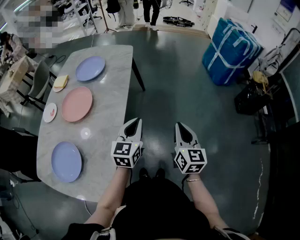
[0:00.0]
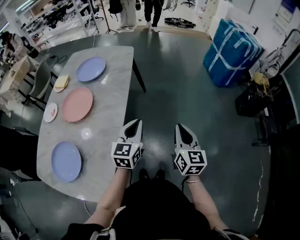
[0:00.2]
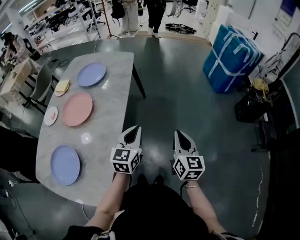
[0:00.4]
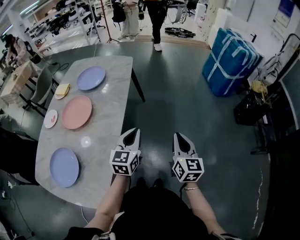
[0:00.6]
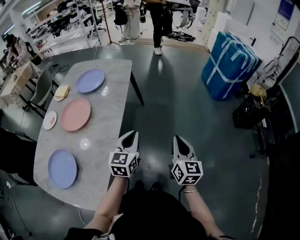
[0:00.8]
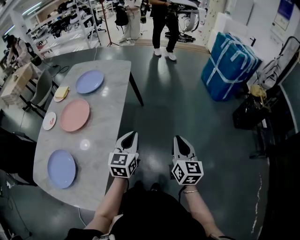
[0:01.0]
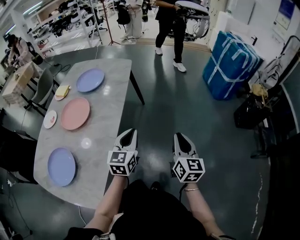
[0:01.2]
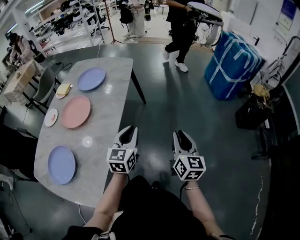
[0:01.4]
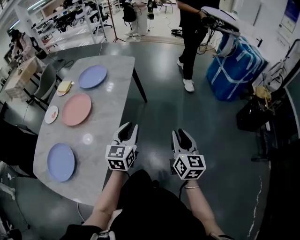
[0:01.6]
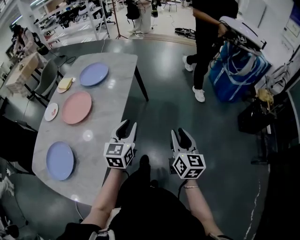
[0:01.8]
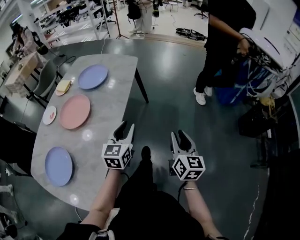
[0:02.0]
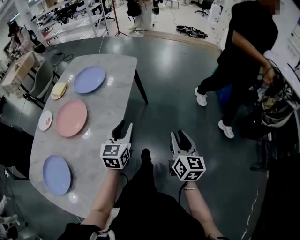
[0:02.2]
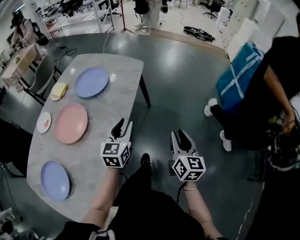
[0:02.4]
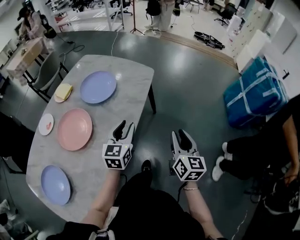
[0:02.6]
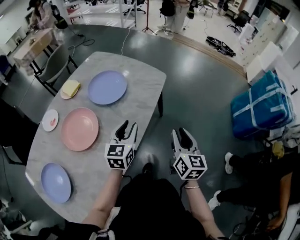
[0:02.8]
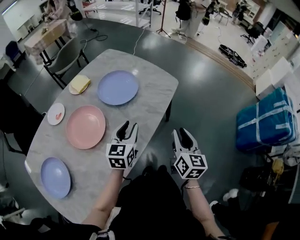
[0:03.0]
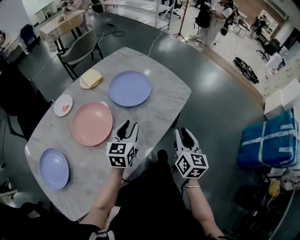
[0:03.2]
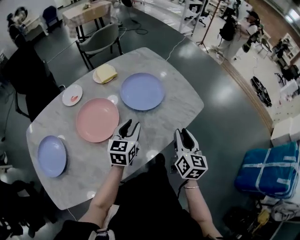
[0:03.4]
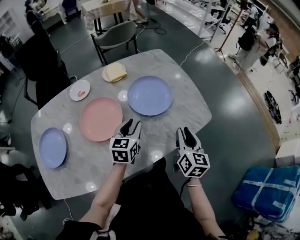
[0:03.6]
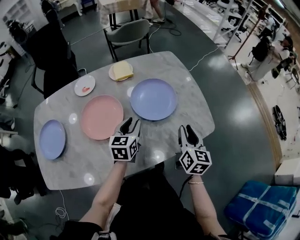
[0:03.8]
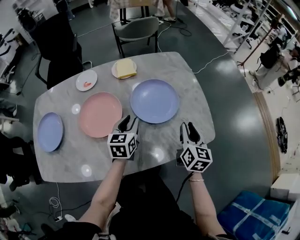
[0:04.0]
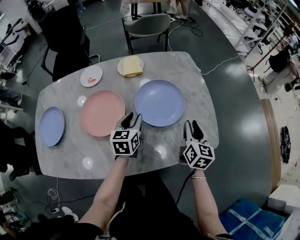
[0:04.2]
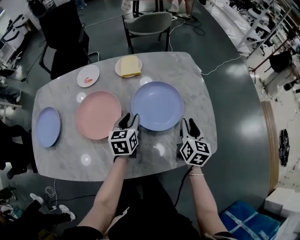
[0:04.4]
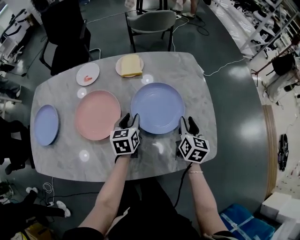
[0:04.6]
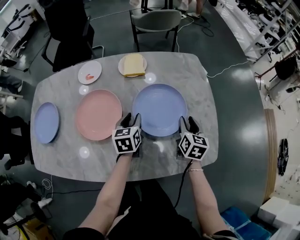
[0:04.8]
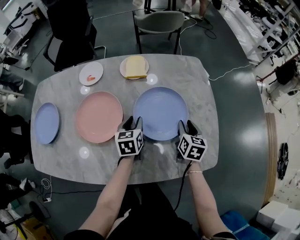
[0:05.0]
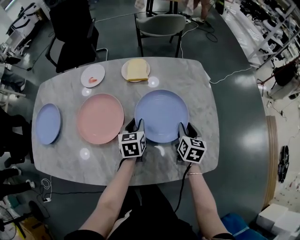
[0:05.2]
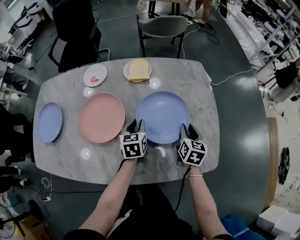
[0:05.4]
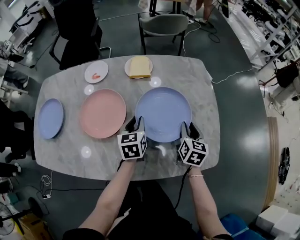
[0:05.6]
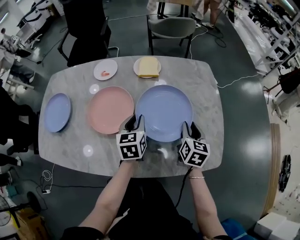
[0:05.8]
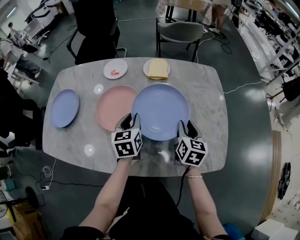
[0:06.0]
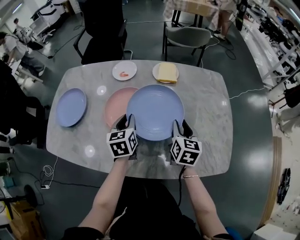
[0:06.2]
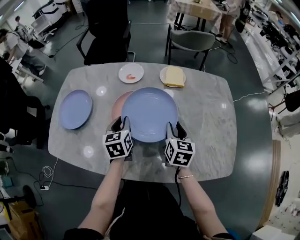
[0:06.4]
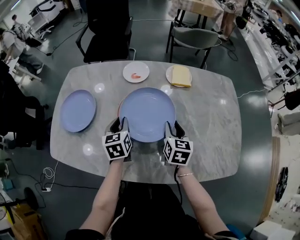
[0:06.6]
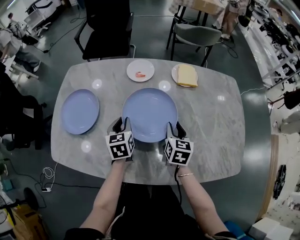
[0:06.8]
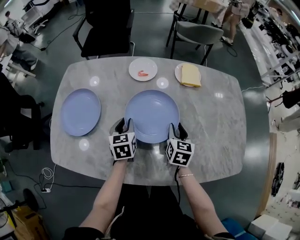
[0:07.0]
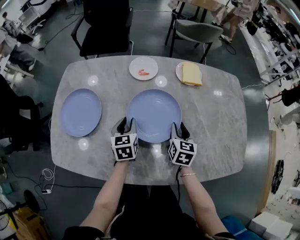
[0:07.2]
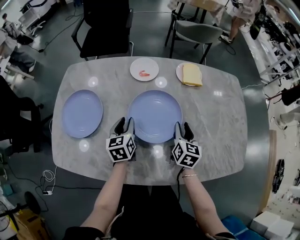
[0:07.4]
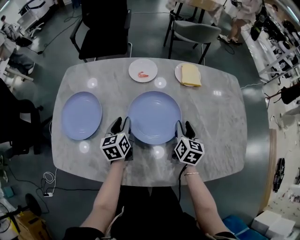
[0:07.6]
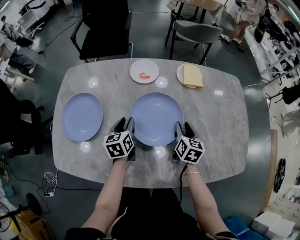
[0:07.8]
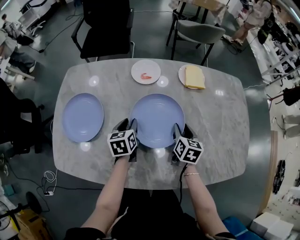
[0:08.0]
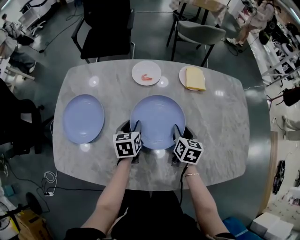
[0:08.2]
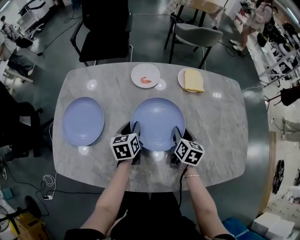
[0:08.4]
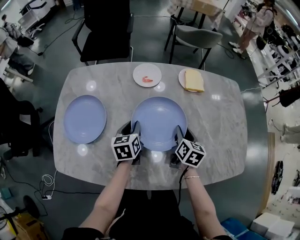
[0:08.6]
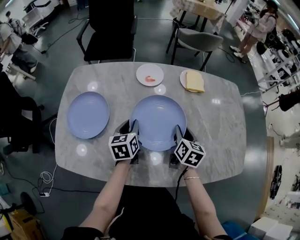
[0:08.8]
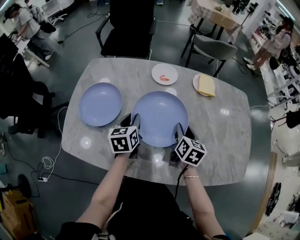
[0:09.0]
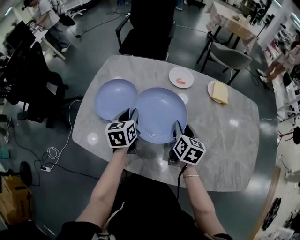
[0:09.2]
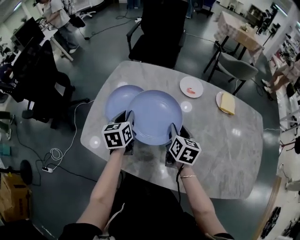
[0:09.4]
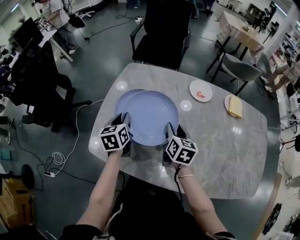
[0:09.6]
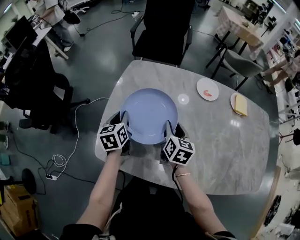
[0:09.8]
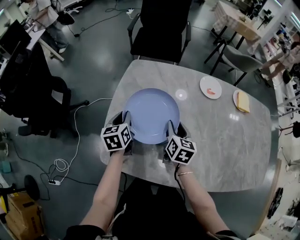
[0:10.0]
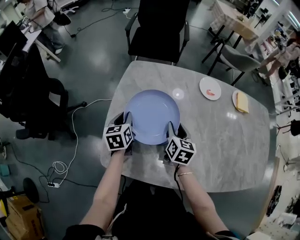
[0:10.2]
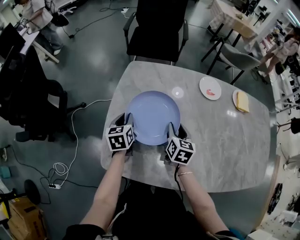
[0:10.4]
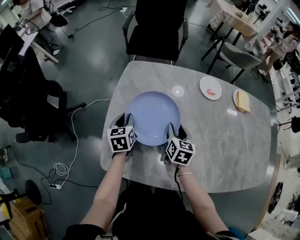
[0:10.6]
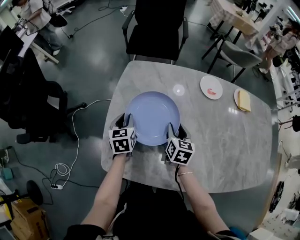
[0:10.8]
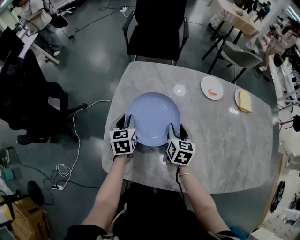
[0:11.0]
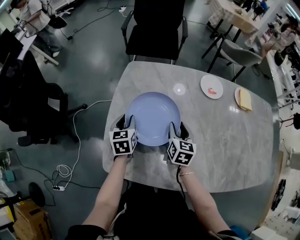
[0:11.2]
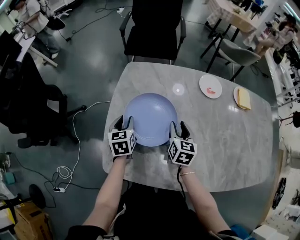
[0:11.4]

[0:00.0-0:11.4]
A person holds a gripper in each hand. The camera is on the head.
0:00.0 to 0:01.4: The right gripper shifts by about 5 cm.
0:01.4 to 0:02.8: The right gripper goes some 35 cm forward. Meanwhile the left gripper goes some 30 cm forward and to the left.
0:02.8 to 0:04.2: The right gripper moves some 40 cm, and changes its angle by about 50 degrees. Meanwhile the left gripper changes place by roughly 25 cm, and turns by roughly 60 degrees.
0:04.2 to 0:05.6: The right gripper moves forward and downward, some 10 cm.
0:05.6 to 0:07.2: The two grippers go approximately 30 cm to the left.
0:07.2 to 0:08.6: The grippers move only a little.
0:08.6 to 0:10.0: The two grippers go approximately 35 cm to the left.
0:10.0 to 0:11.4: The grippers make only small movements.

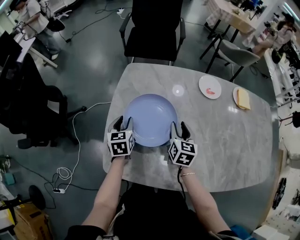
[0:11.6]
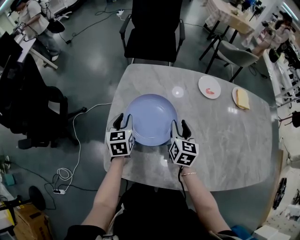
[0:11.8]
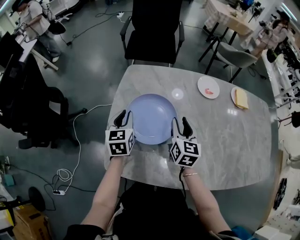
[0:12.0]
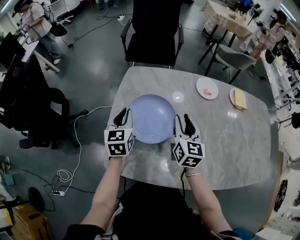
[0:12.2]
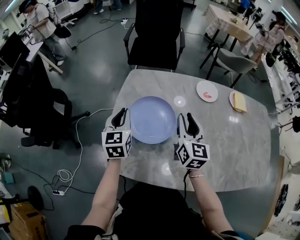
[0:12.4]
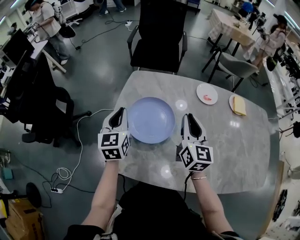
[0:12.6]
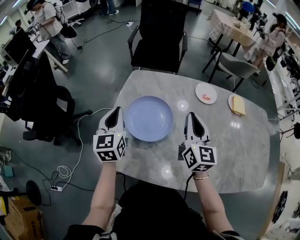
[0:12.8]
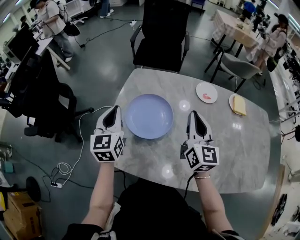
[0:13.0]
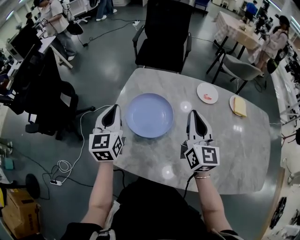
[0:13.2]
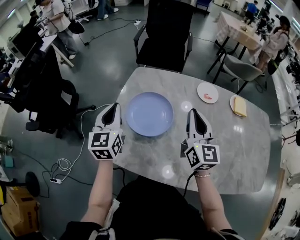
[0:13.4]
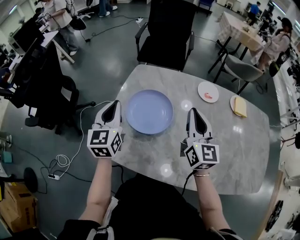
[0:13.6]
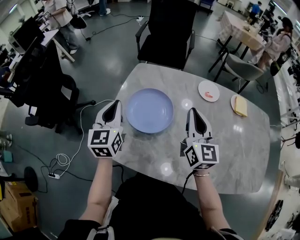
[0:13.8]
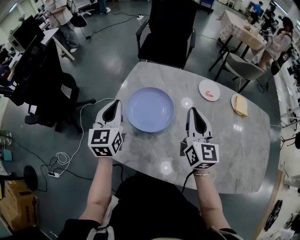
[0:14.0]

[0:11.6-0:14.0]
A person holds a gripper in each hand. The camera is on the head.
0:11.6 to 0:12.8: Both grippers move upward, about 20 cm. The right gripper rotates roughly 30 degrees, and closes up. The left gripper changes its angle by some 20 degrees, and closes.
0:12.8 to 0:14.0: The grippers move only a little.

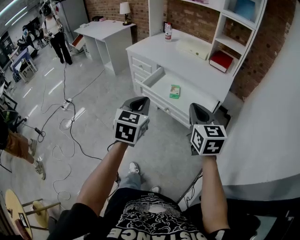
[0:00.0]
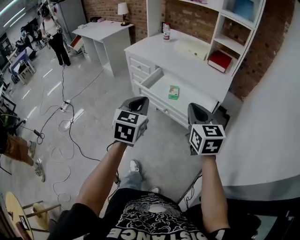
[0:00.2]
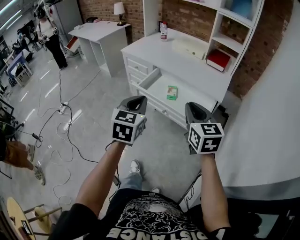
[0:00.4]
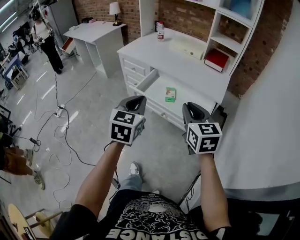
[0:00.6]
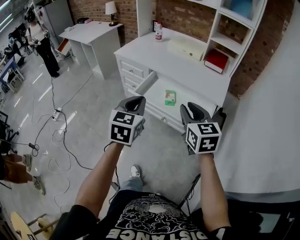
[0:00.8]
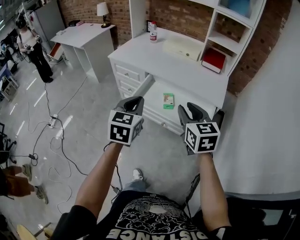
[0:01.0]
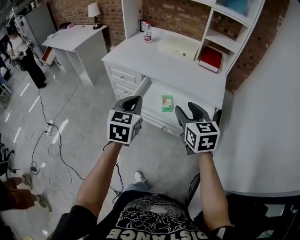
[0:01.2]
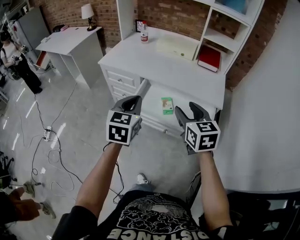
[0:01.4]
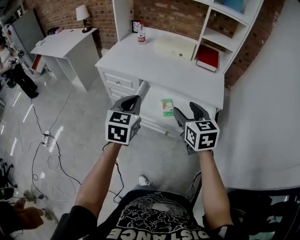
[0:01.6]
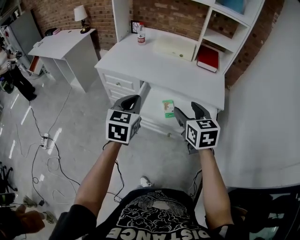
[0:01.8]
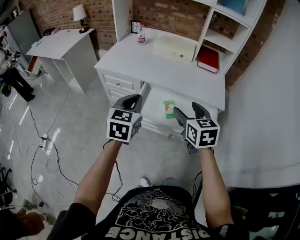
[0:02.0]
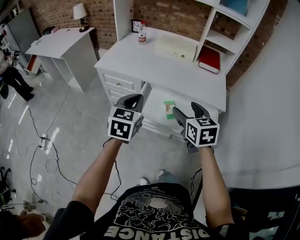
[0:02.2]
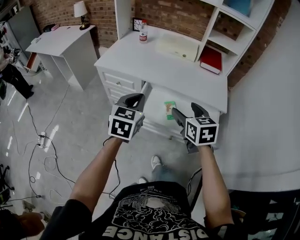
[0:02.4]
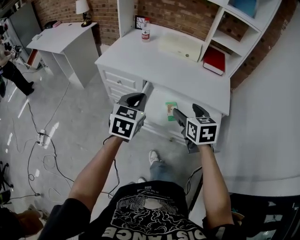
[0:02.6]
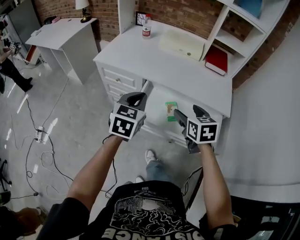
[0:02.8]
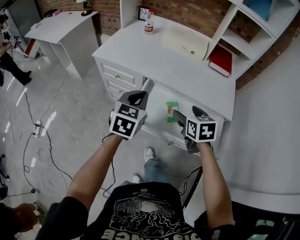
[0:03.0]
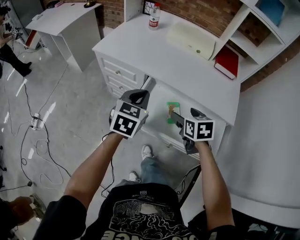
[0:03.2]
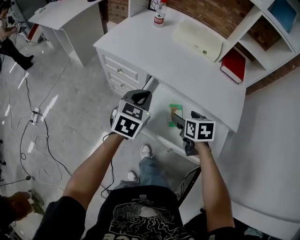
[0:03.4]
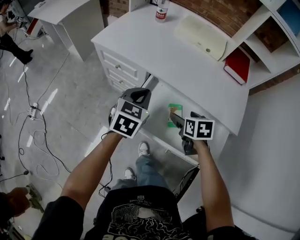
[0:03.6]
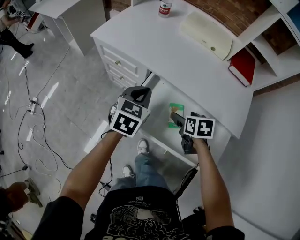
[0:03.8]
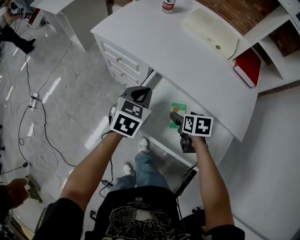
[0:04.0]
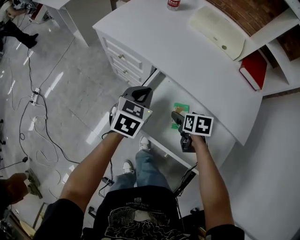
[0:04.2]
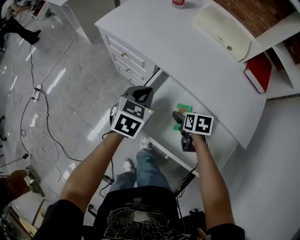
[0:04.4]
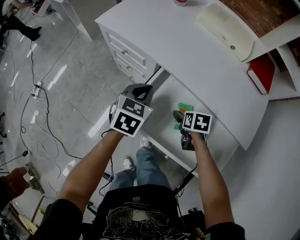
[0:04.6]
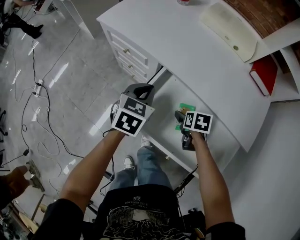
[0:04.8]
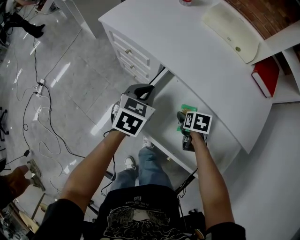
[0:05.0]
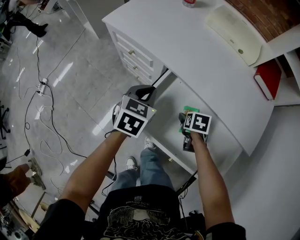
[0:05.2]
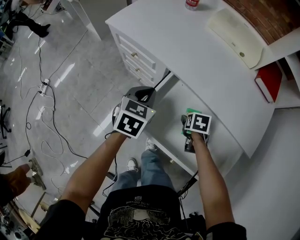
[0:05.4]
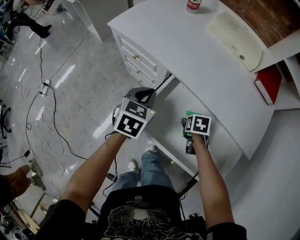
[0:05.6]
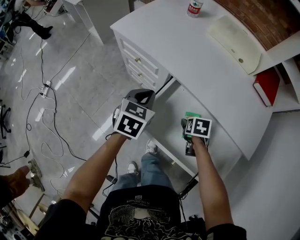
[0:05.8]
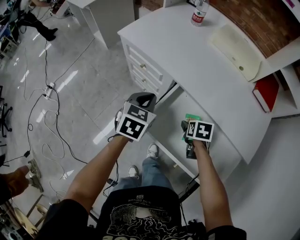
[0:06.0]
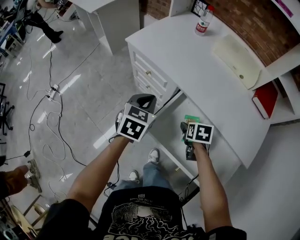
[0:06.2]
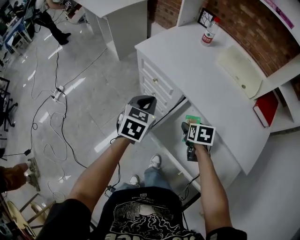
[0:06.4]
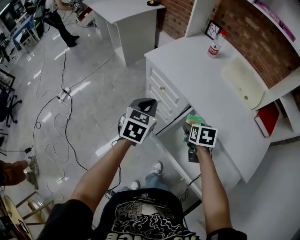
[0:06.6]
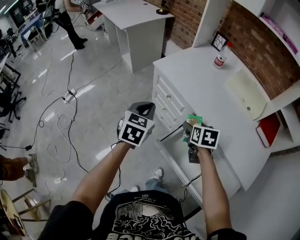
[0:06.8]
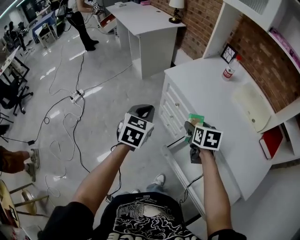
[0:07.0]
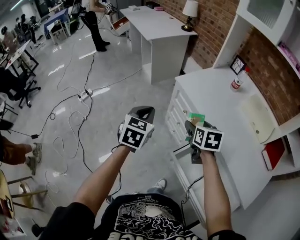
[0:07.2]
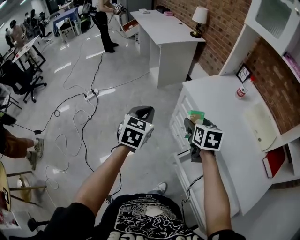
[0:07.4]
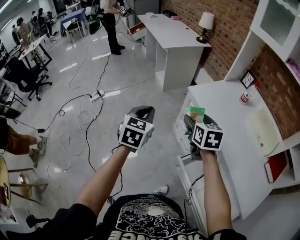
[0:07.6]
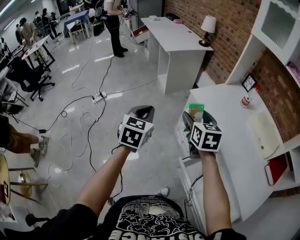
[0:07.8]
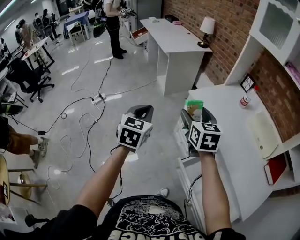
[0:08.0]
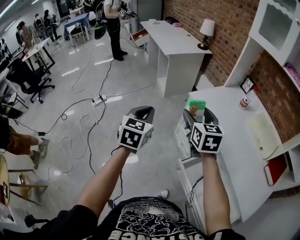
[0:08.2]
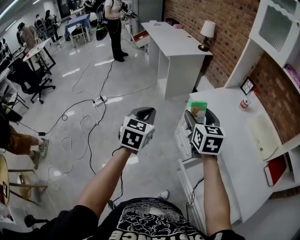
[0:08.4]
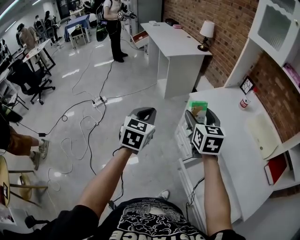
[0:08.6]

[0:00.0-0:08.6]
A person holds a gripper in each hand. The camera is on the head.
0:00.0 to 0:01.4: The left gripper shifts approximately 25 cm forward, while the right gripper travels forward and to the left by approximately 20 cm, and opens.
0:01.4 to 0:02.8: Both grippers travel together forward and downward, some 15 cm.
0:02.8 to 0:04.4: The two grippers go some 25 cm downward and forward. The right gripper rotates some 30 degrees.
0:04.4 to 0:05.8: The grippers make only small movements.
0:05.8 to 0:07.2: The right gripper shifts by roughly 35 cm, and tilts its fingers roughly 30 degrees upward. The left gripper moves about 30 cm, and rotates roughly 30 degrees.
0:07.2 to 0:08.6: The right gripper moves upward and to the left, some 20 cm, and rotates roughly 30 degrees. Meanwhile the left gripper shifts approximately 10 cm to the left and upward.

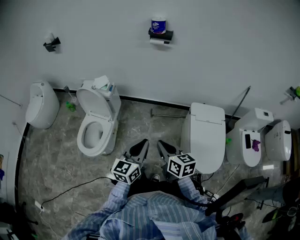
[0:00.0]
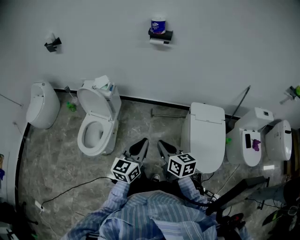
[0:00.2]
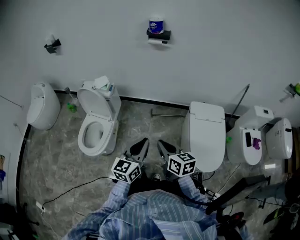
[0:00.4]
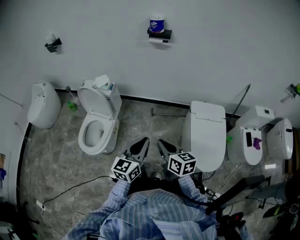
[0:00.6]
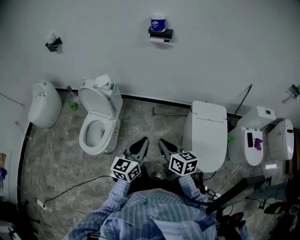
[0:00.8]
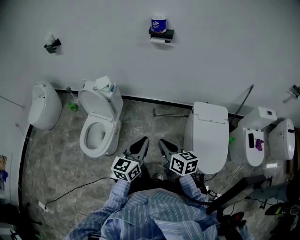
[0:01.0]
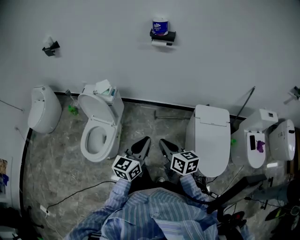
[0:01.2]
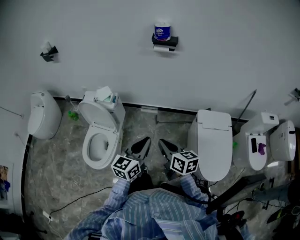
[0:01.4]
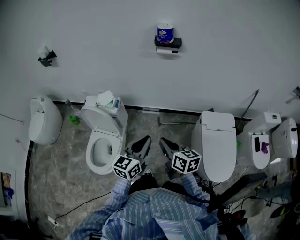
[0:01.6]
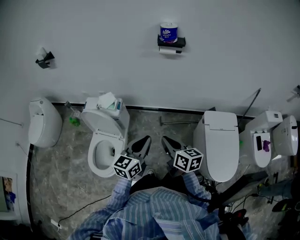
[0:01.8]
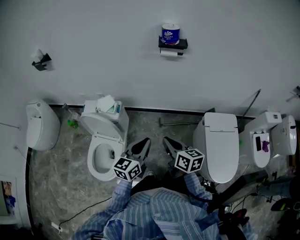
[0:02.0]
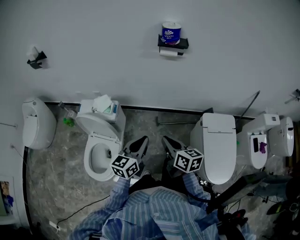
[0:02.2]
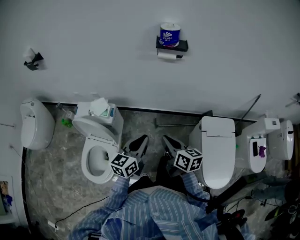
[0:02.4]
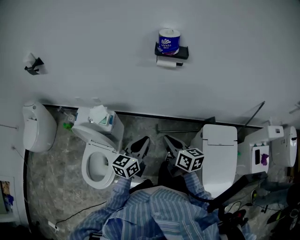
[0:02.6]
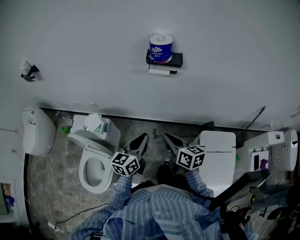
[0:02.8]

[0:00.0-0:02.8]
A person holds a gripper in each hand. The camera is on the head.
0:00.0 to 0:01.4: Both grippers travel together forward, about 10 cm.
0:01.4 to 0:02.8: Both grippers travel together forward, approximately 30 cm.
